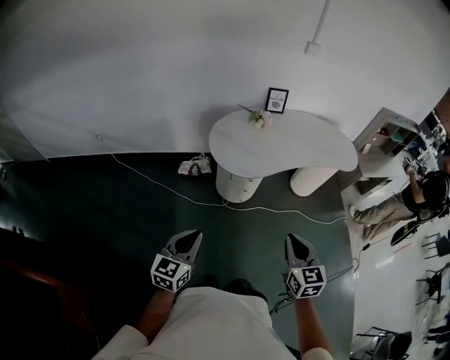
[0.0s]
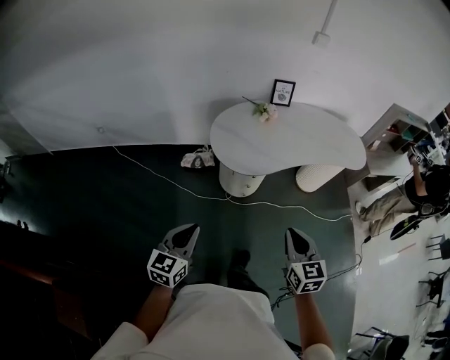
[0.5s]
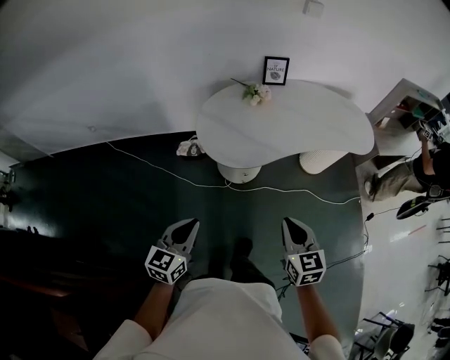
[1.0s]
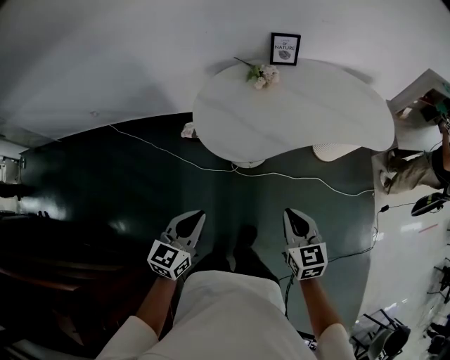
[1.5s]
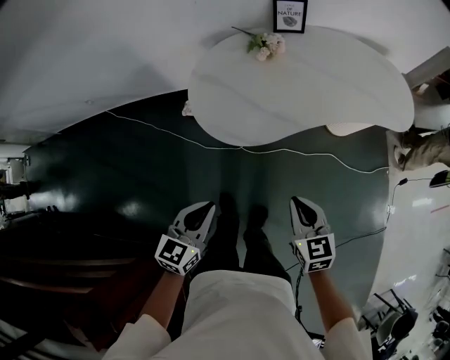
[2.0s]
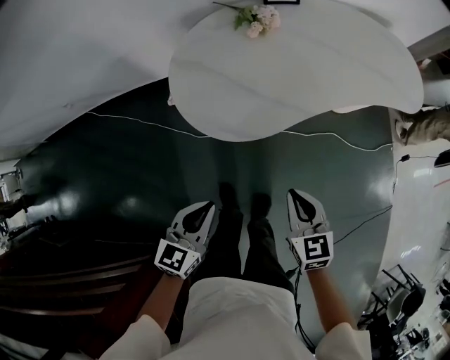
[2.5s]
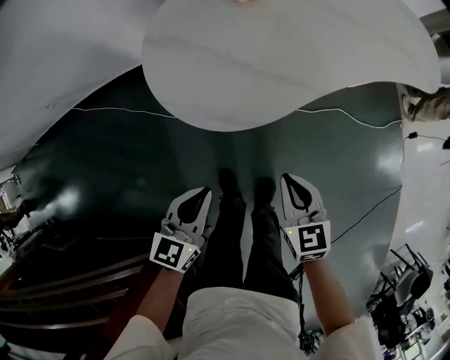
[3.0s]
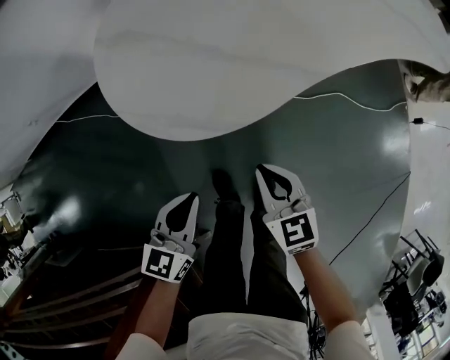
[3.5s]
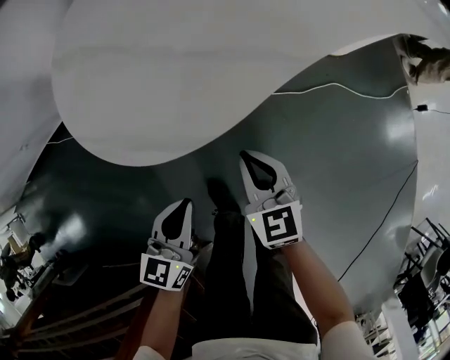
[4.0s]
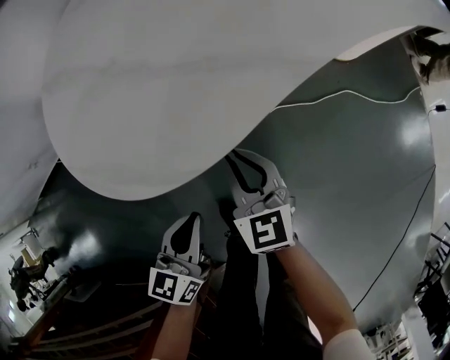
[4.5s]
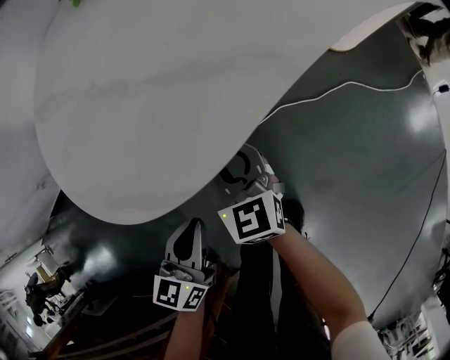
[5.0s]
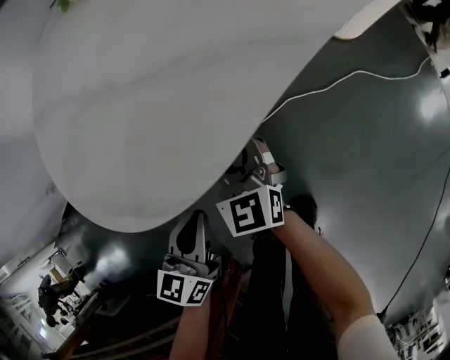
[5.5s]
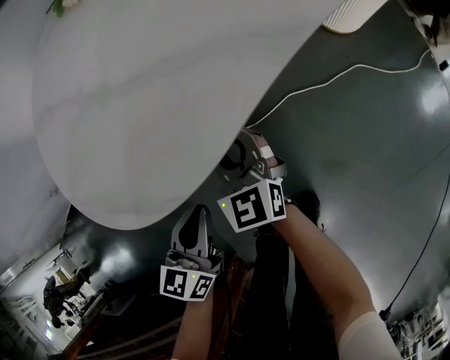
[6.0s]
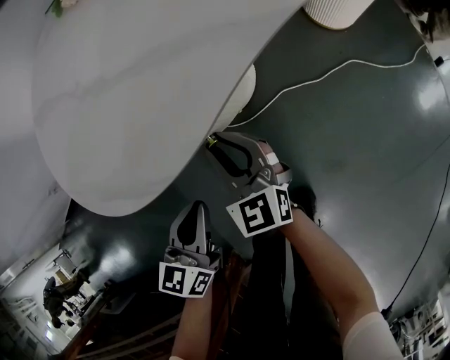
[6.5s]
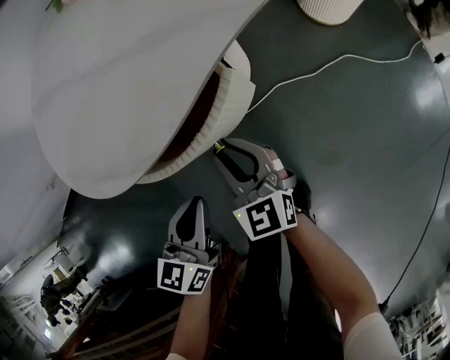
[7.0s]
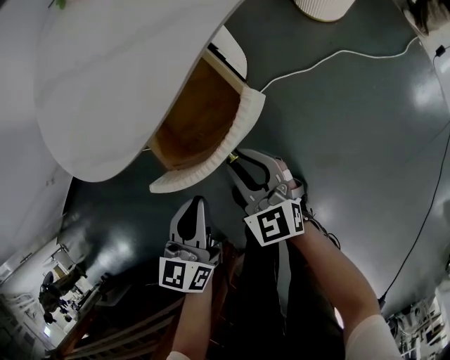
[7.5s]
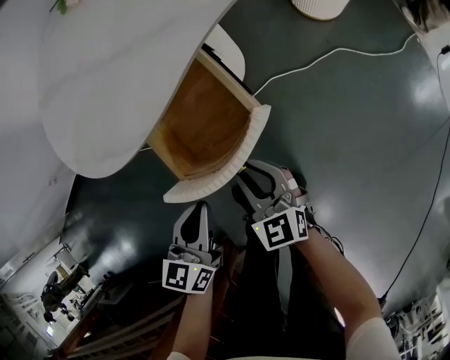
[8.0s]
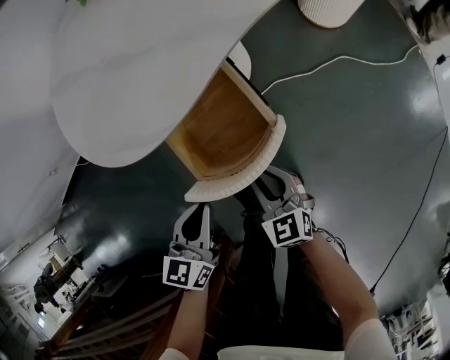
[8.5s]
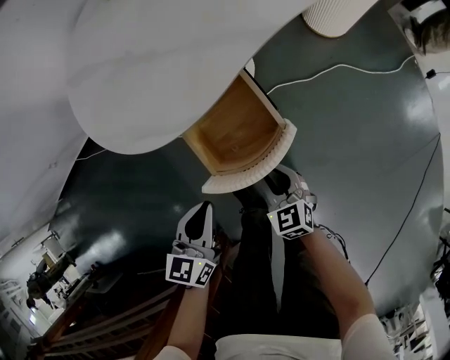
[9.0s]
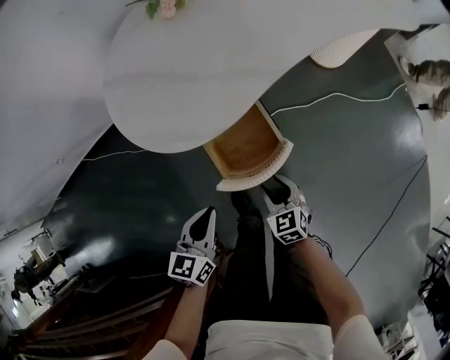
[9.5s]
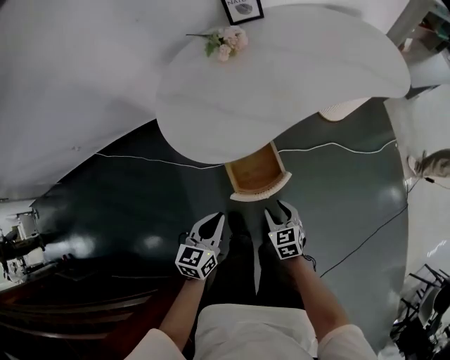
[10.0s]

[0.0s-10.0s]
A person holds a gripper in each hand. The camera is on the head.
0.0s to 2.0s: The left gripper moves forward, to the right and downward, approximately 30 cm. The right gripper is displaced forward and downward by about 30 cm.
2.0s to 4.0s: The grippers both shift downward by roughly 35 cm.
4.0s to 6.0s: The right gripper heads forward, downward and to the left, covering about 15 cm, and opens. Meanwhile the left gripper travels downward and forward by approximately 10 cm.
6.0s to 8.0s: The left gripper heads backward and to the right, covering approximately 10 cm; the right gripper is displaced backward and to the right by about 20 cm.
8.0s to 10.0s: Both grippers travel together upward, approximately 20 cm. The right gripper changes its angle by some 20 degrees.

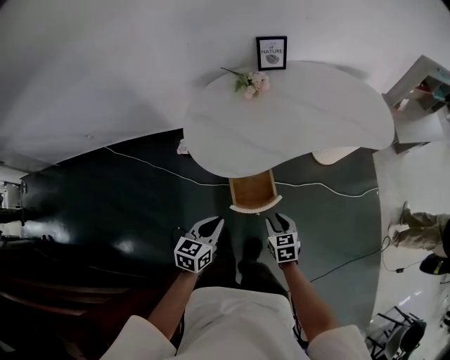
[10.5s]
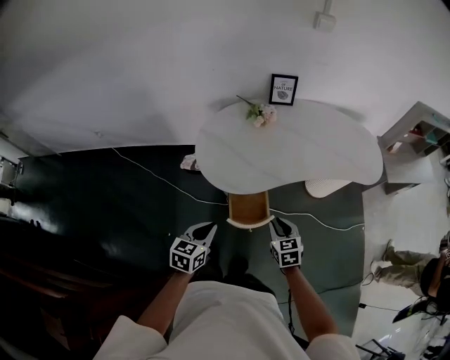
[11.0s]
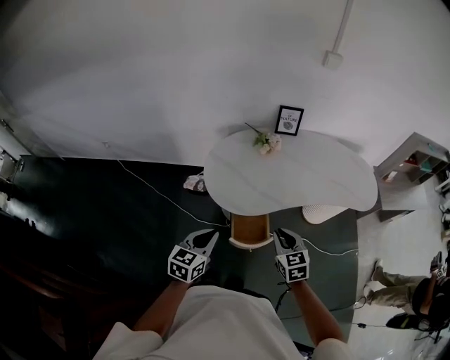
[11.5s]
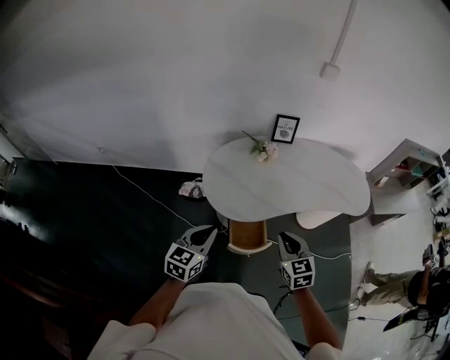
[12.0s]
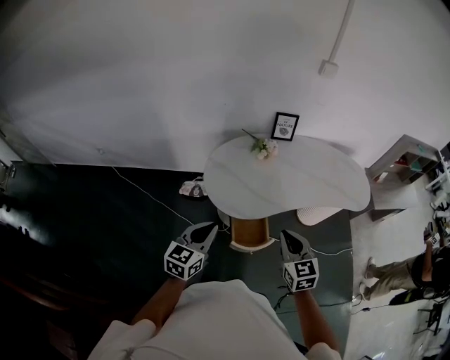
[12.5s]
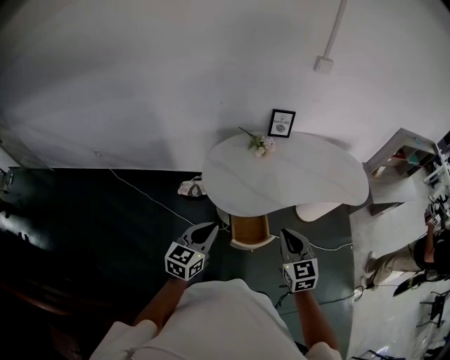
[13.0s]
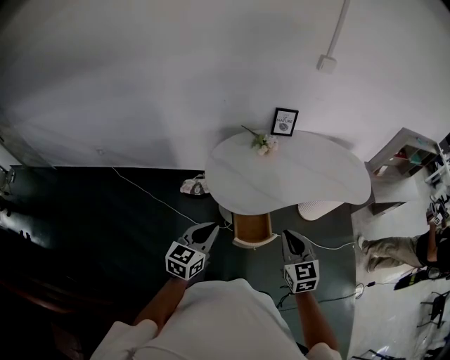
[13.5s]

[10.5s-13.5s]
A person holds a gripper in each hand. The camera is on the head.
10.5s to 12.0s: The grippers both shift upward by some 25 cm. The right gripper swivels some 30 degrees, and closes up.
12.0s to 13.5s: The right gripper moves approximately 5 cm.

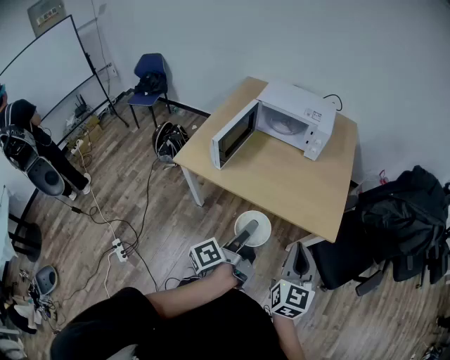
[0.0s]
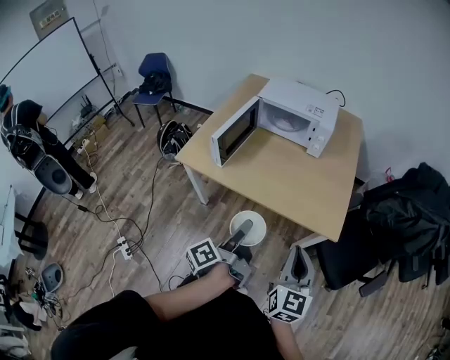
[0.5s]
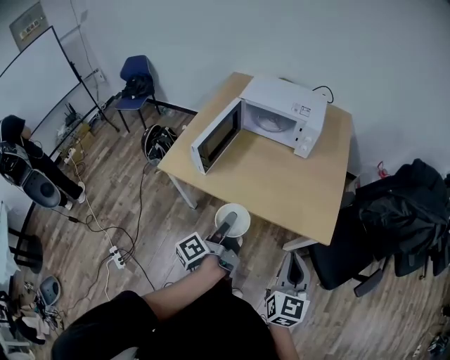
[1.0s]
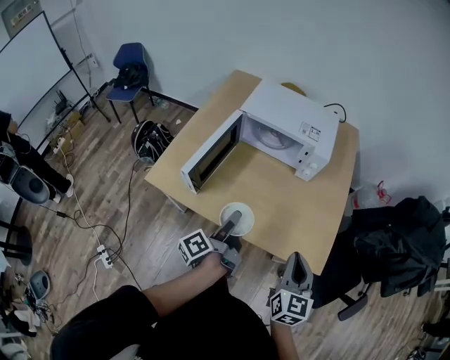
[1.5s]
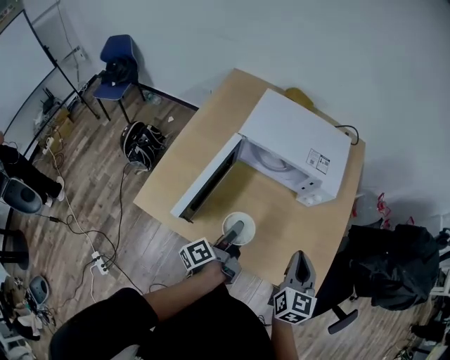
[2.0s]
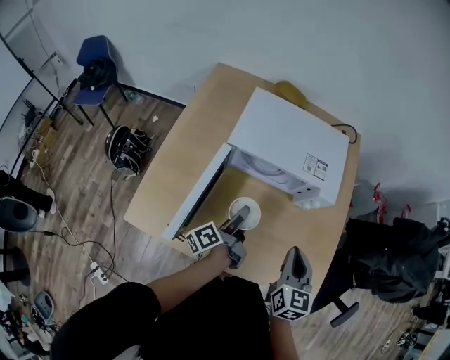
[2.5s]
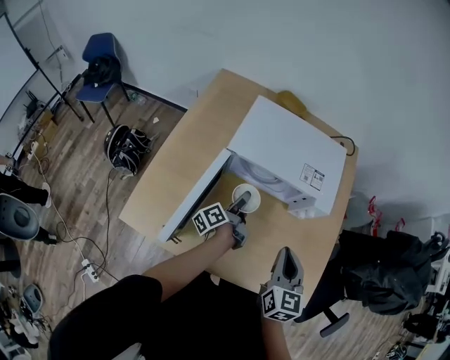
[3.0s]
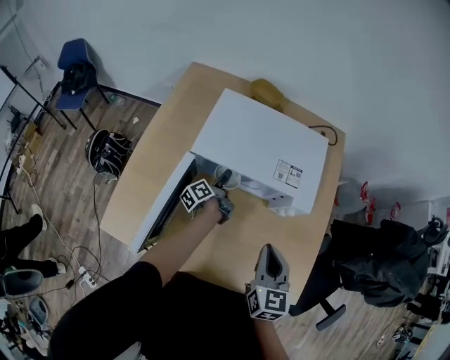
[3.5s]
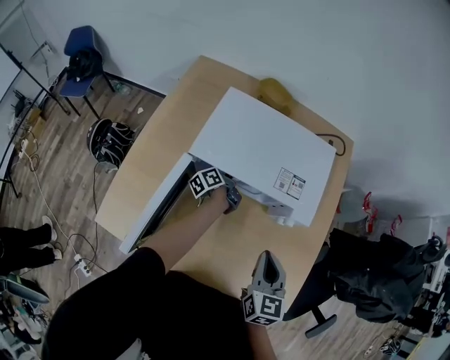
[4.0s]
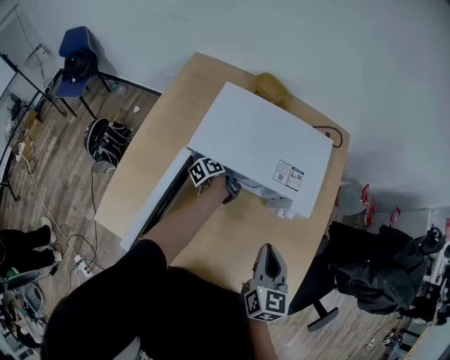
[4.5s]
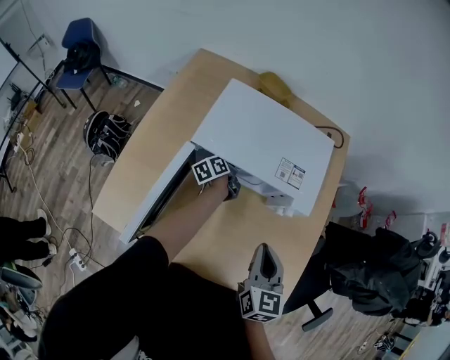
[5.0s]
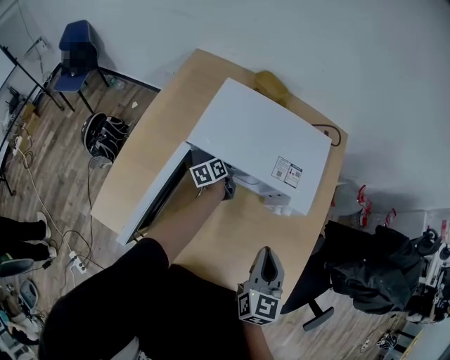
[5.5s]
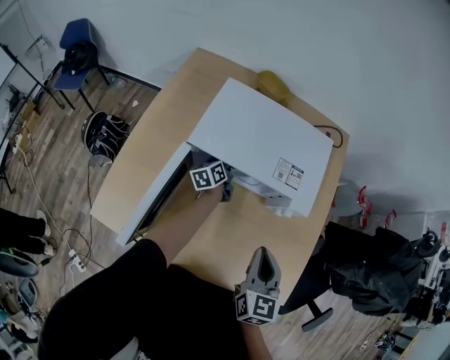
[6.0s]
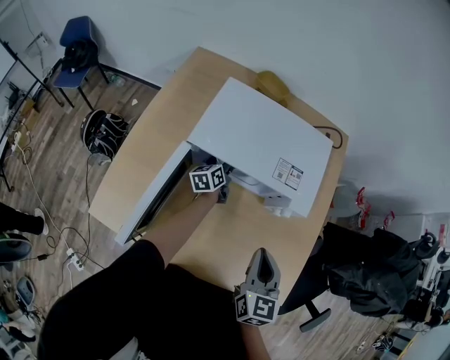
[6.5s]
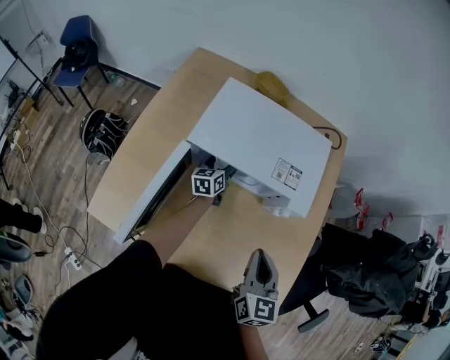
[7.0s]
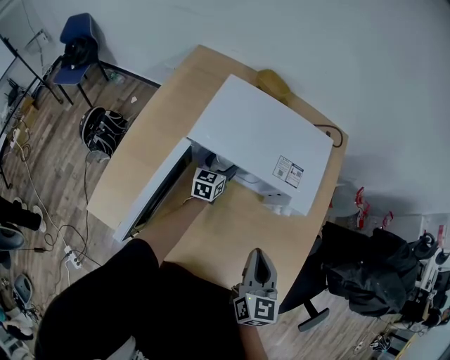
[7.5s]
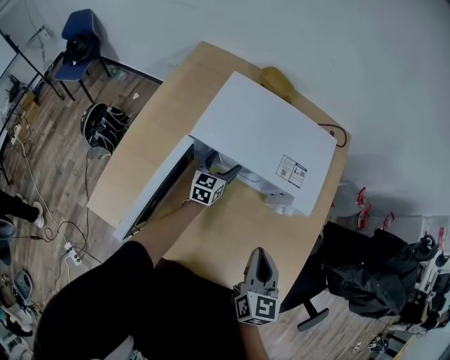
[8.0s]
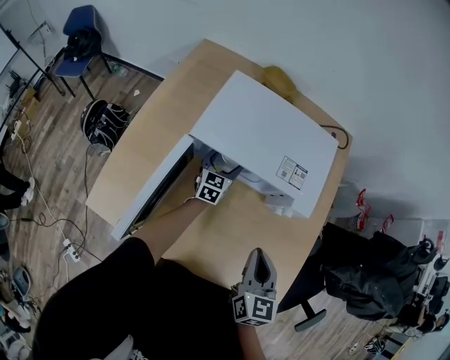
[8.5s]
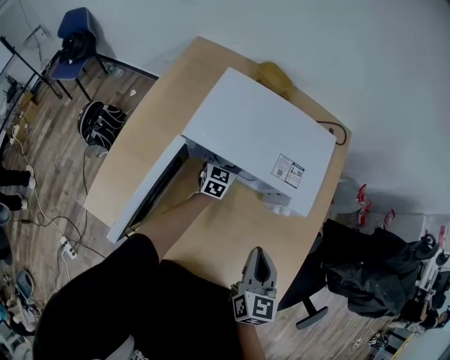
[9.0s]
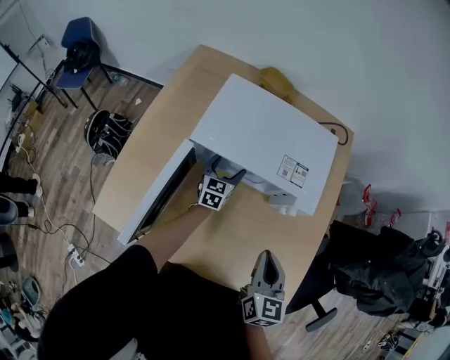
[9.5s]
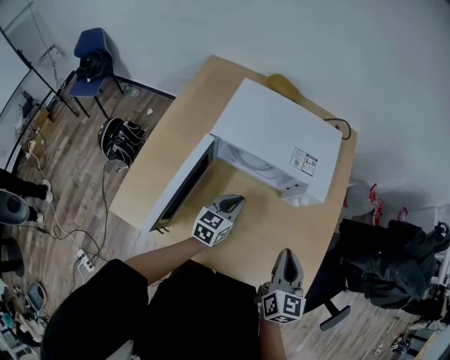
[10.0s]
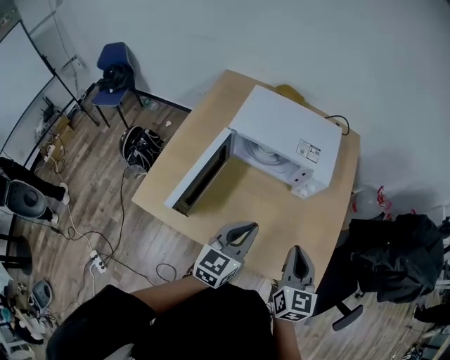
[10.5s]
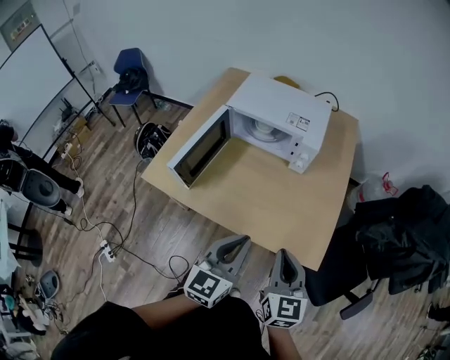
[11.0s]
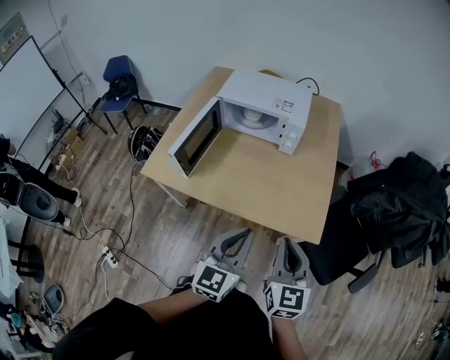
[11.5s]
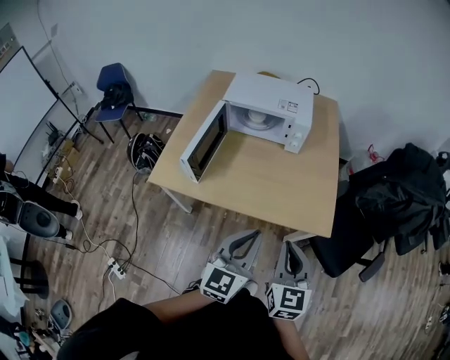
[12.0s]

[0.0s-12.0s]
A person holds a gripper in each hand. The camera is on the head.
0.0s to 2.0s: Both grippers travel together forward, some 35 cm.
2.0s to 4.0s: The left gripper shifts roughly 40 cm forward and downward. Meanwhile the right gripper shifts roughly 10 cm forward.
4.0s to 6.0s: The left gripper rotates approximately 30 degrees.
6.0s to 8.0s: The left gripper swivels roughly 40 degrees.
8.0s to 10.0s: The left gripper moves backward, approximately 15 cm, and closes its fingers. The right gripper ends up approximately 5 cm from where it was.
10.0s to 12.0s: The right gripper is displaced backward by about 30 cm, while the left gripper moves backward and upward, some 50 cm, and turns by roughly 20 degrees.

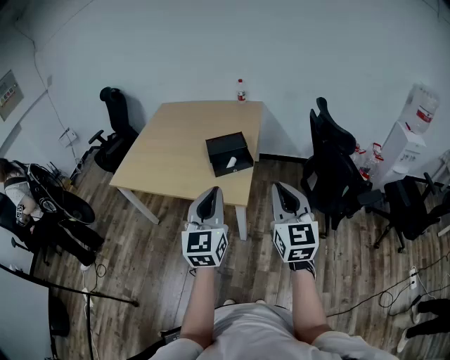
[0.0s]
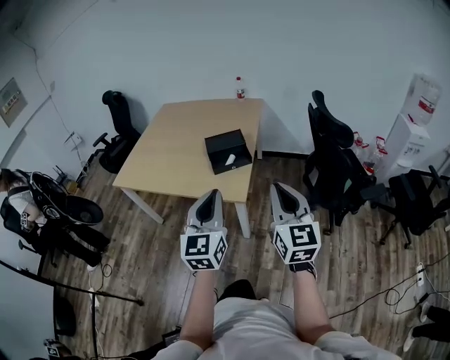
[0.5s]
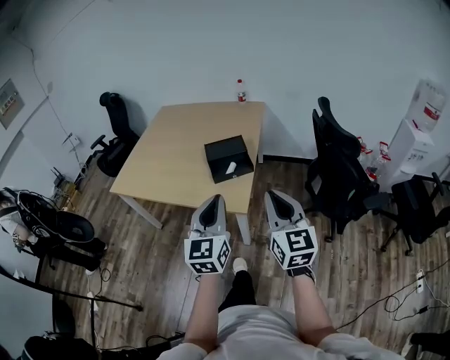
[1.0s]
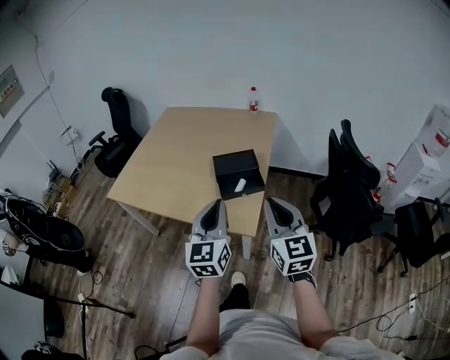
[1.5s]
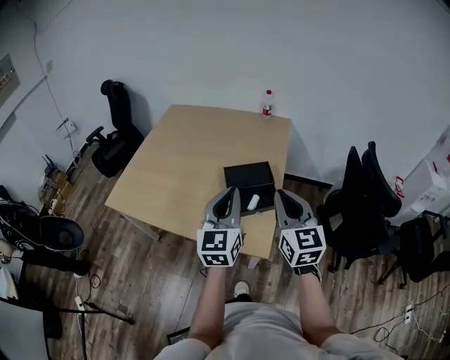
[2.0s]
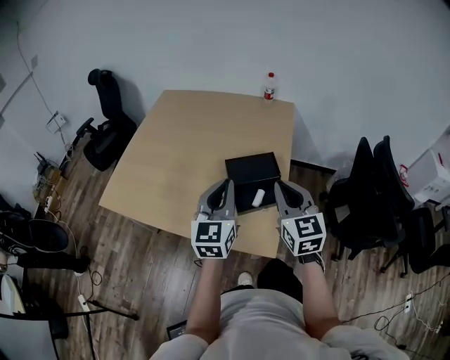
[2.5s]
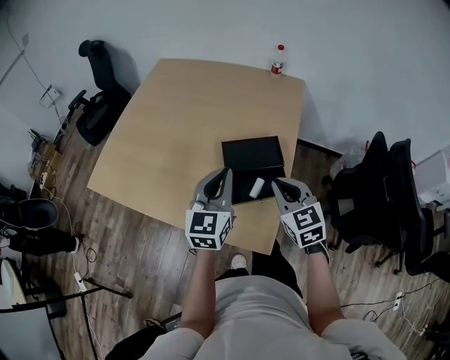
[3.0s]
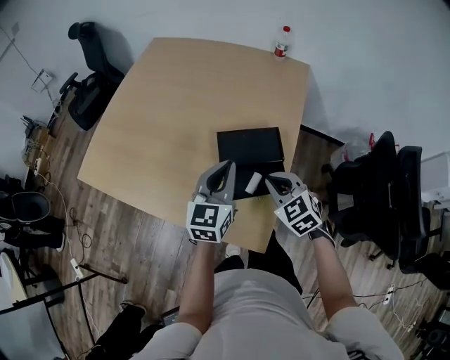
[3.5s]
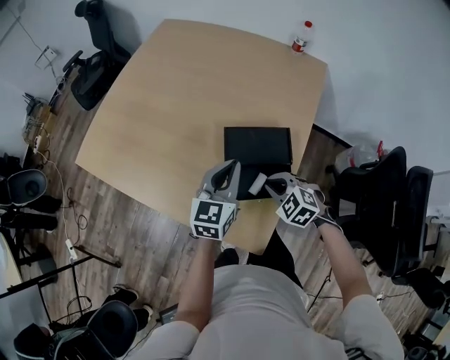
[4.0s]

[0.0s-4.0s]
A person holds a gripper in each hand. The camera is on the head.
0.0s to 2.0s: Both grippers move forward, approximately 30 cm.
2.0s to 4.0s: Both grippers travel together downward and forward, some 35 cm. The right gripper points its fingers about 50 degrees further downward.
